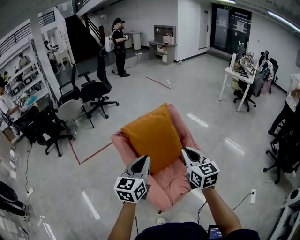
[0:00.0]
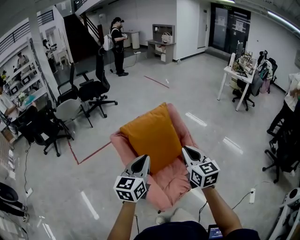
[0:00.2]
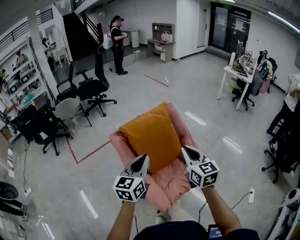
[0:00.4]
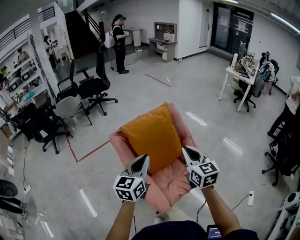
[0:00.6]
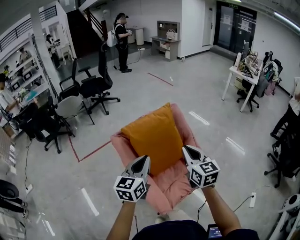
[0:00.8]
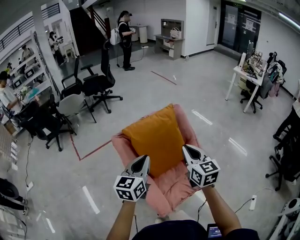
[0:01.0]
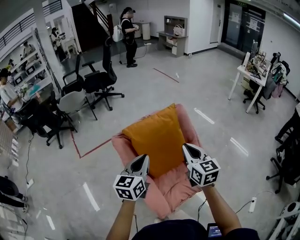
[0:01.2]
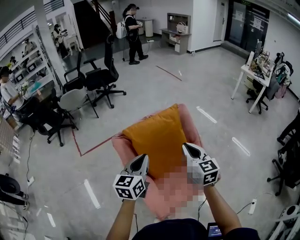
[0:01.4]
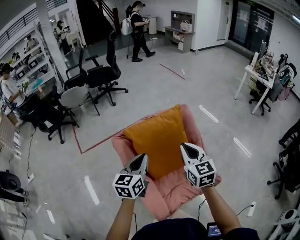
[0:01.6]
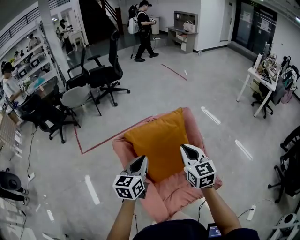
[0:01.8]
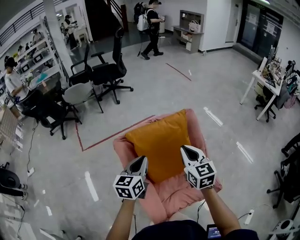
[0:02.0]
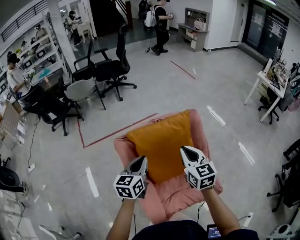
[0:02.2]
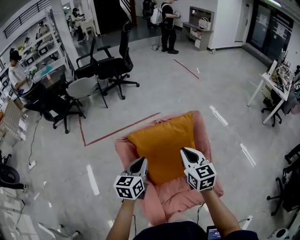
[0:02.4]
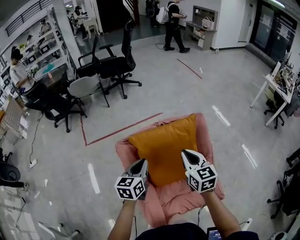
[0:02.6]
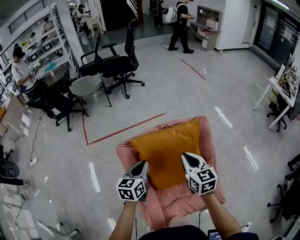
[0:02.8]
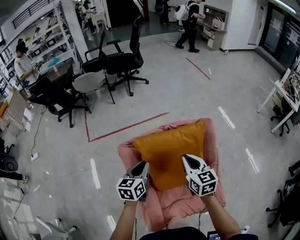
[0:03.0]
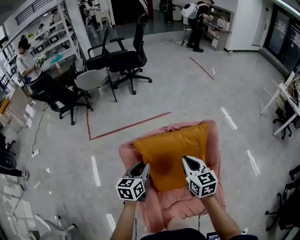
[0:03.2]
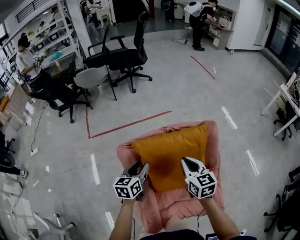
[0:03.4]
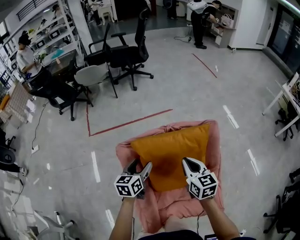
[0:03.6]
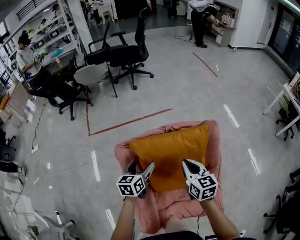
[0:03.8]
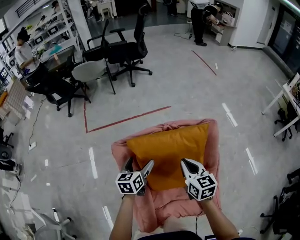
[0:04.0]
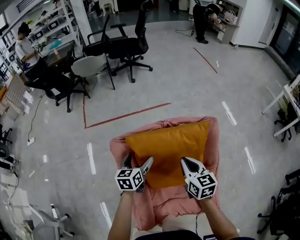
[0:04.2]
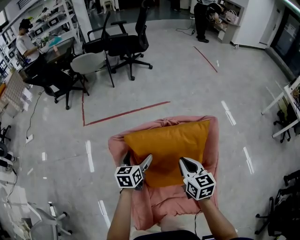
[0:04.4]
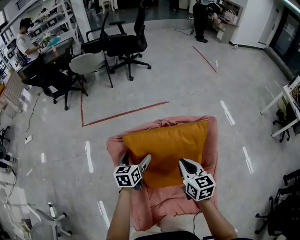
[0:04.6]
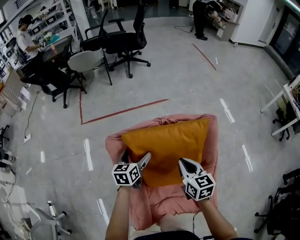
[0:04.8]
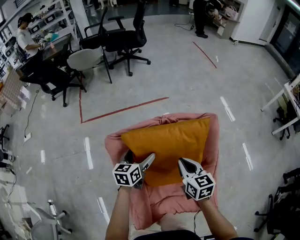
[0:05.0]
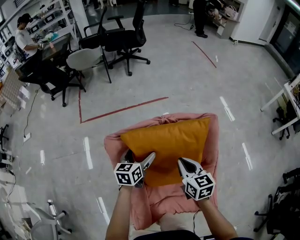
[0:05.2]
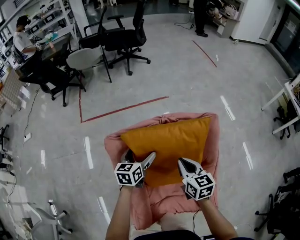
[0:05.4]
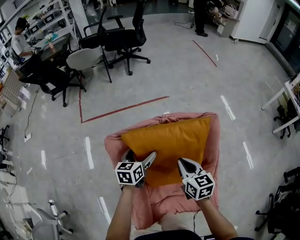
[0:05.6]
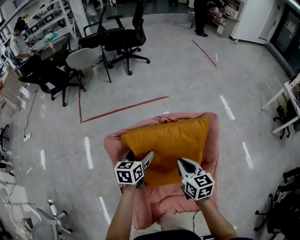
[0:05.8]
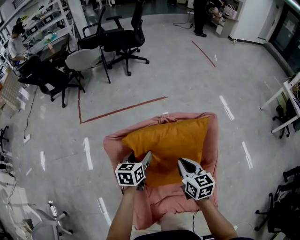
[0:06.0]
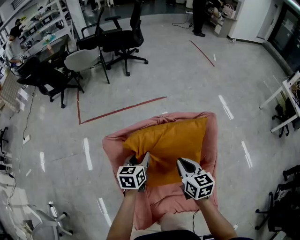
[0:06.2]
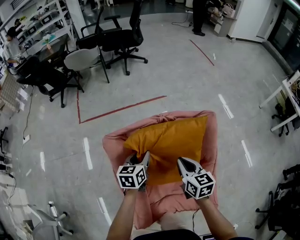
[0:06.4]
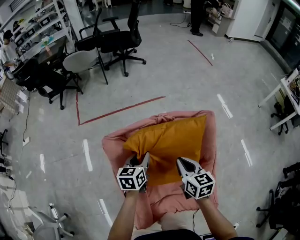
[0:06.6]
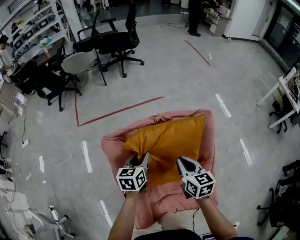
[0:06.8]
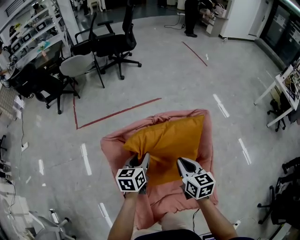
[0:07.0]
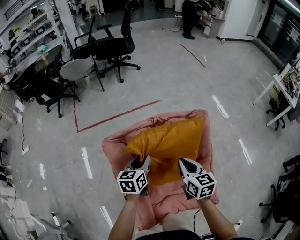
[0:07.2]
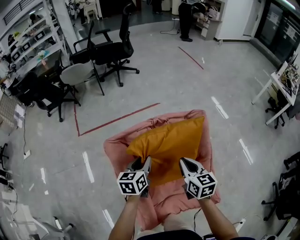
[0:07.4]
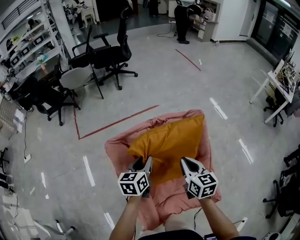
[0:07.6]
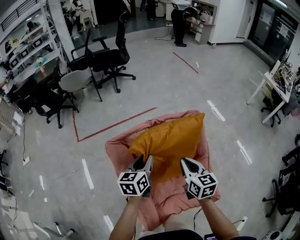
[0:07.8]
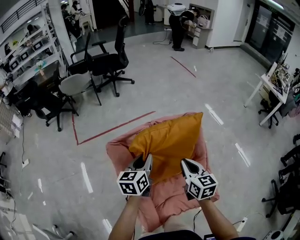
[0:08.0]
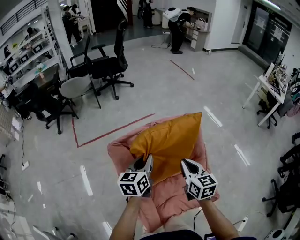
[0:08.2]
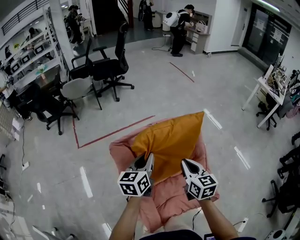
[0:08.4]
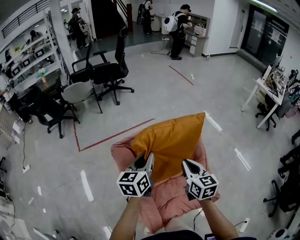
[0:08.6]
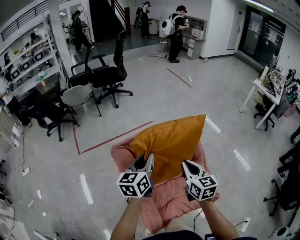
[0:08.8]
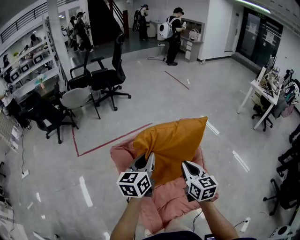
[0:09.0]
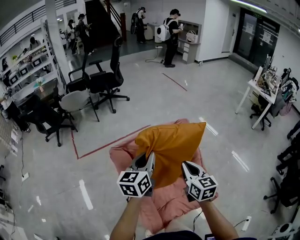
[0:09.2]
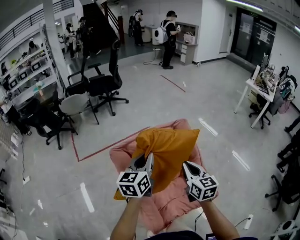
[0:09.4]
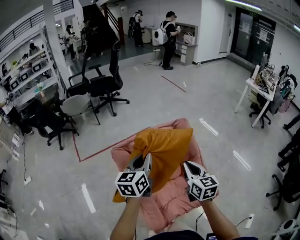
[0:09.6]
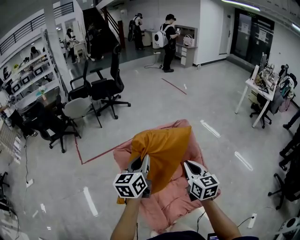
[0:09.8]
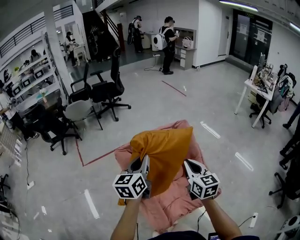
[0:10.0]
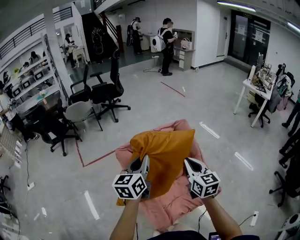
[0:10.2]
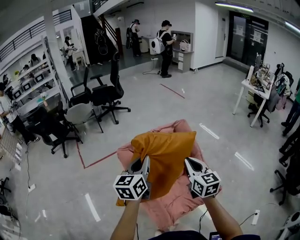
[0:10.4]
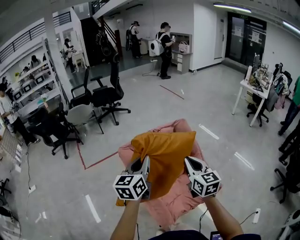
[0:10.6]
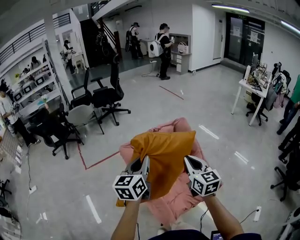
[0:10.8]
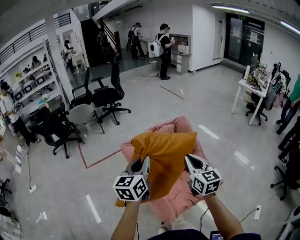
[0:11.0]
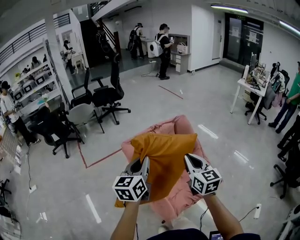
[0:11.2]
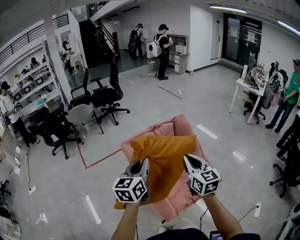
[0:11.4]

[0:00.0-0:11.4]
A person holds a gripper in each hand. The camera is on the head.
0:00.0 to 0:01.4: The right gripper travels forward by about 15 cm. The left gripper is displaced forward and downward by about 15 cm.
0:01.4 to 0:02.8: Both grippers move forward and downward, approximately 15 cm.
0:02.8 to 0:04.2: The right gripper moves downward, roughly 10 cm. The left gripper moves downward and forward, some 10 cm, and opens its fingers.
0:04.2 to 0:05.6: The grippers make only small movements.
0:05.6 to 0:07.2: The left gripper shifts by some 5 cm, and closes.
0:07.2 to 0:08.6: The left gripper moves upward, some 15 cm. The right gripper moves upward and backward, about 10 cm.
0:08.6 to 0:10.0: Both grippers move backward and upward, approximately 10 cm.
0:10.0 to 0:11.4: The two grippers go roughly 10 cm backward.

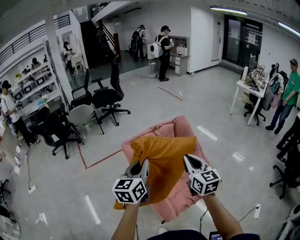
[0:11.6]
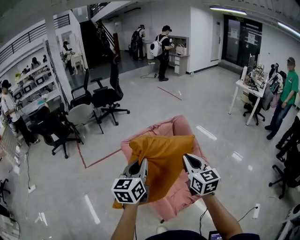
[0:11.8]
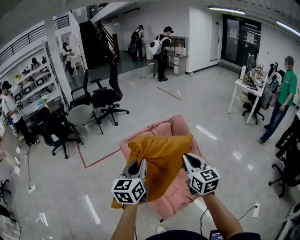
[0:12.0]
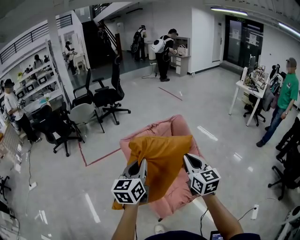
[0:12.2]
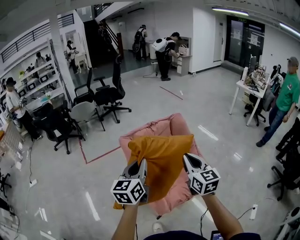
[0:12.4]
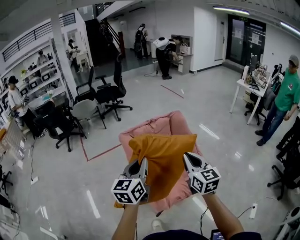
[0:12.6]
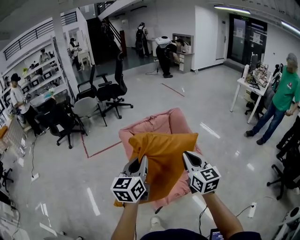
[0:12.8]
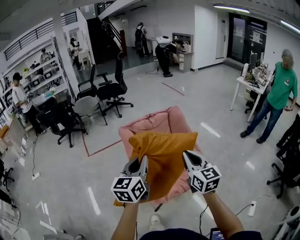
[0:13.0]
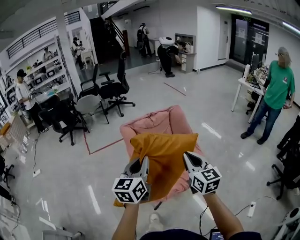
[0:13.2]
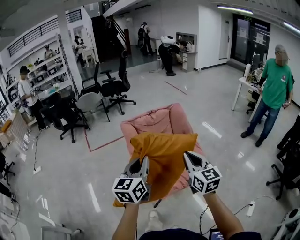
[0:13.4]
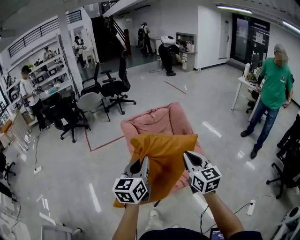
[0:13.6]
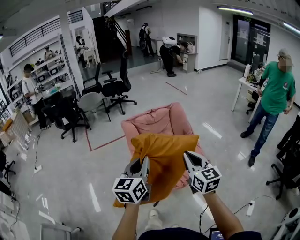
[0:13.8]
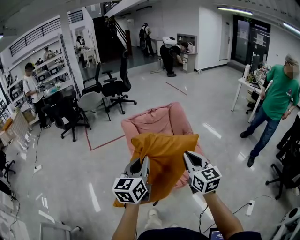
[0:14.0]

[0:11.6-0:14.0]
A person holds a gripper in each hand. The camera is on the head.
0:11.6 to 0:12.8: The two grippers go roughly 10 cm backward and to the right.
0:12.8 to 0:14.0: The two grippers go some 10 cm backward.

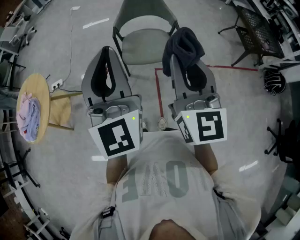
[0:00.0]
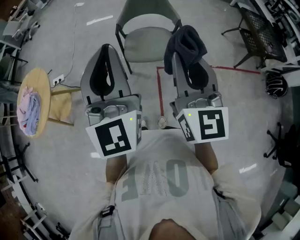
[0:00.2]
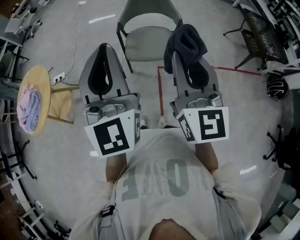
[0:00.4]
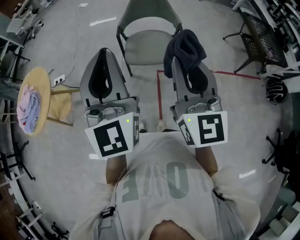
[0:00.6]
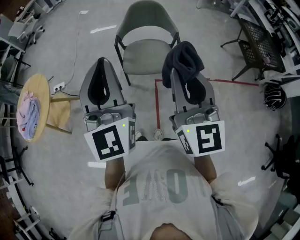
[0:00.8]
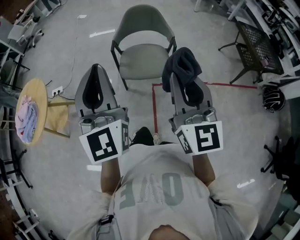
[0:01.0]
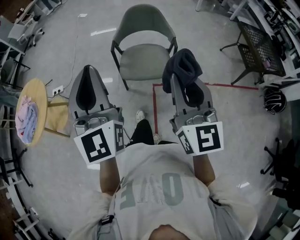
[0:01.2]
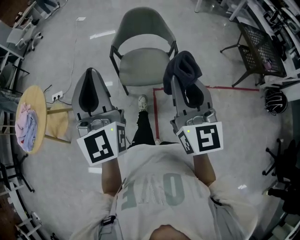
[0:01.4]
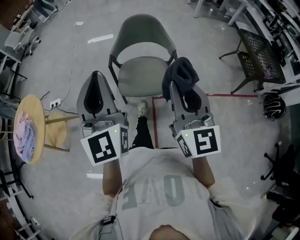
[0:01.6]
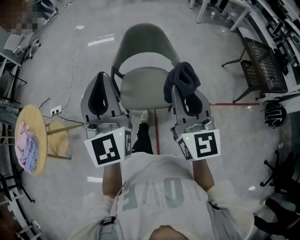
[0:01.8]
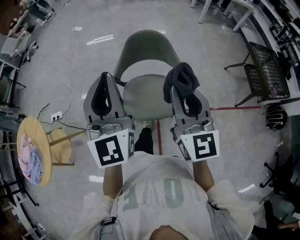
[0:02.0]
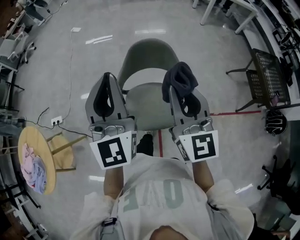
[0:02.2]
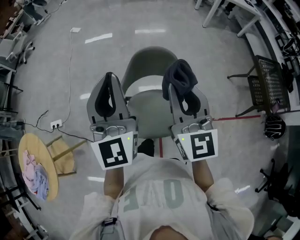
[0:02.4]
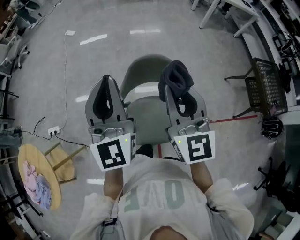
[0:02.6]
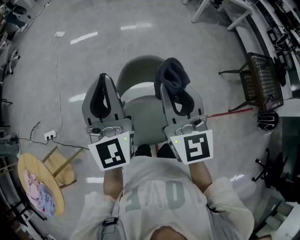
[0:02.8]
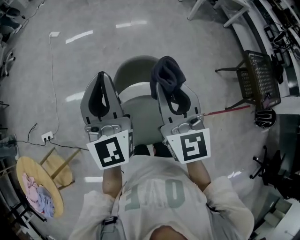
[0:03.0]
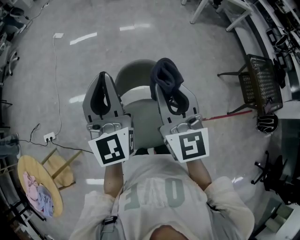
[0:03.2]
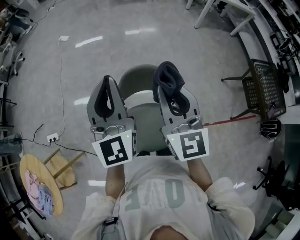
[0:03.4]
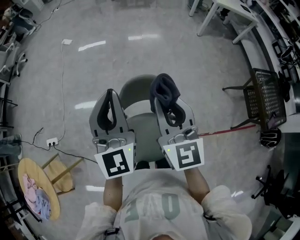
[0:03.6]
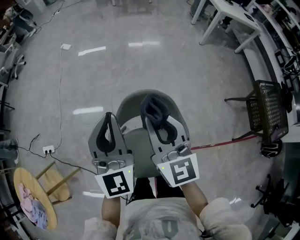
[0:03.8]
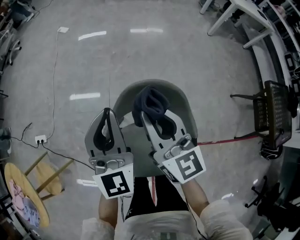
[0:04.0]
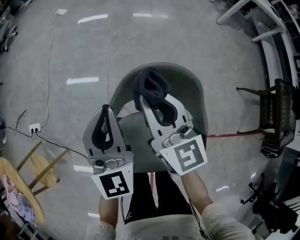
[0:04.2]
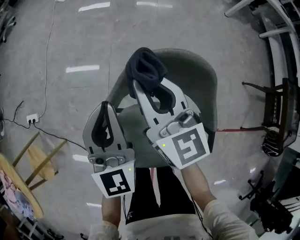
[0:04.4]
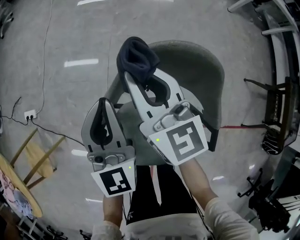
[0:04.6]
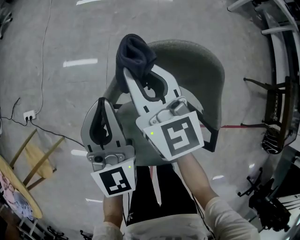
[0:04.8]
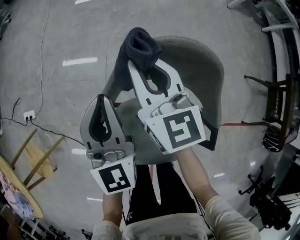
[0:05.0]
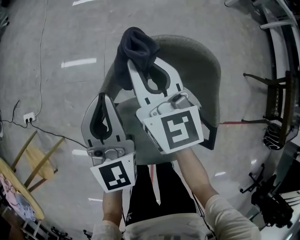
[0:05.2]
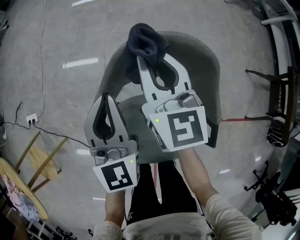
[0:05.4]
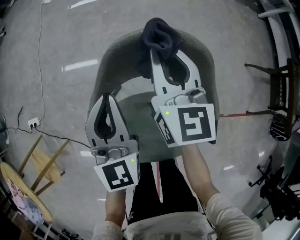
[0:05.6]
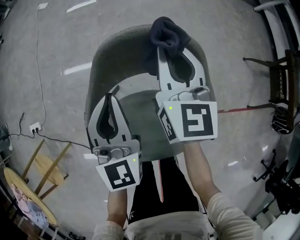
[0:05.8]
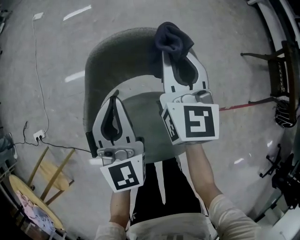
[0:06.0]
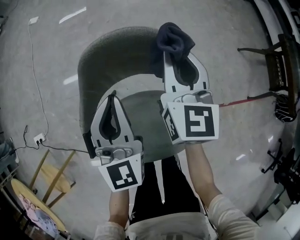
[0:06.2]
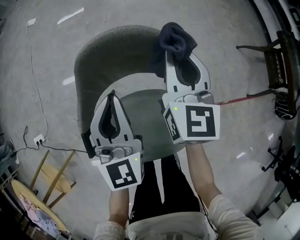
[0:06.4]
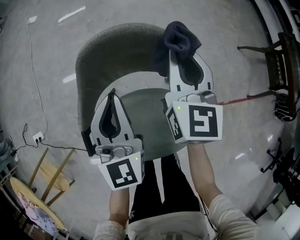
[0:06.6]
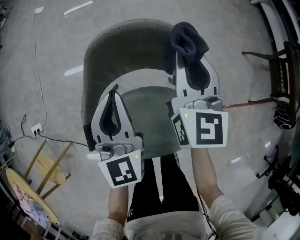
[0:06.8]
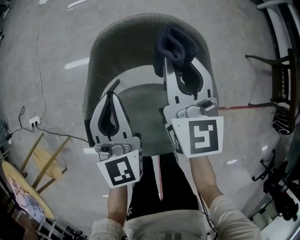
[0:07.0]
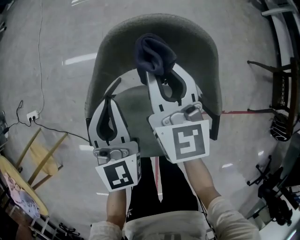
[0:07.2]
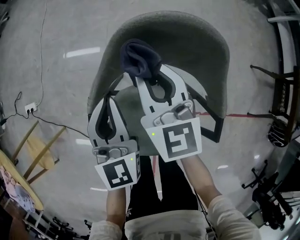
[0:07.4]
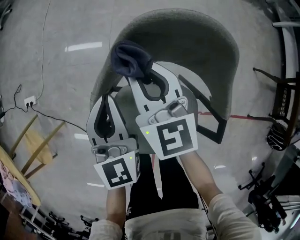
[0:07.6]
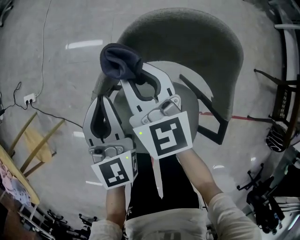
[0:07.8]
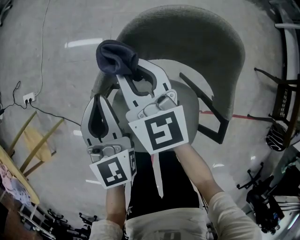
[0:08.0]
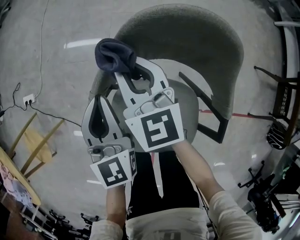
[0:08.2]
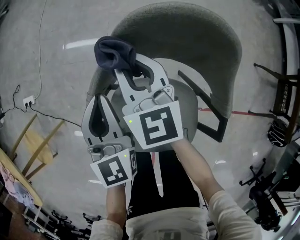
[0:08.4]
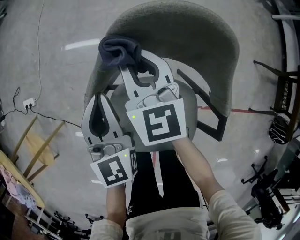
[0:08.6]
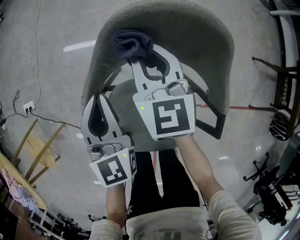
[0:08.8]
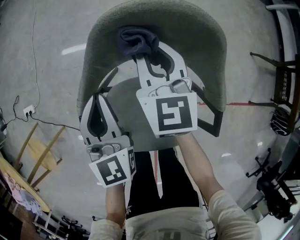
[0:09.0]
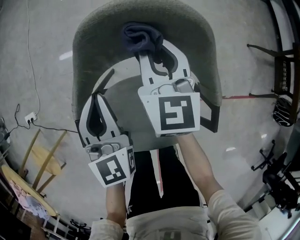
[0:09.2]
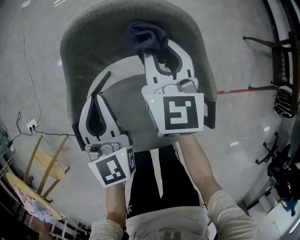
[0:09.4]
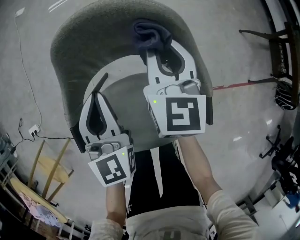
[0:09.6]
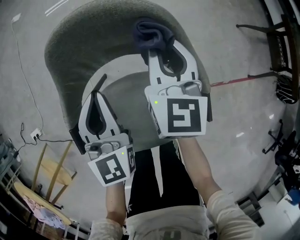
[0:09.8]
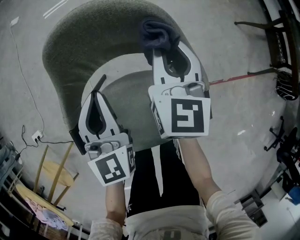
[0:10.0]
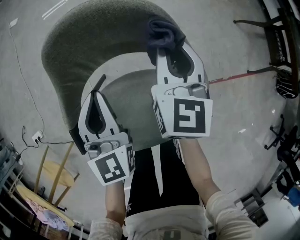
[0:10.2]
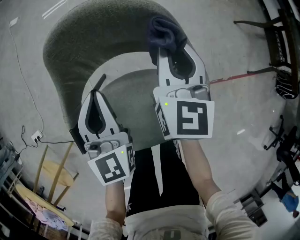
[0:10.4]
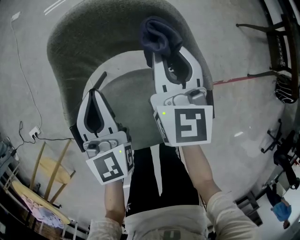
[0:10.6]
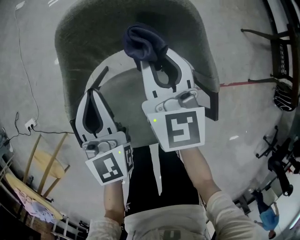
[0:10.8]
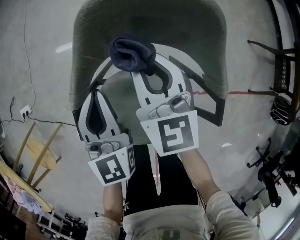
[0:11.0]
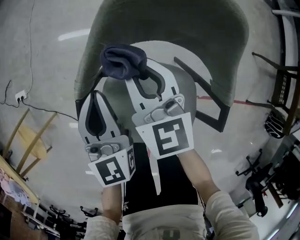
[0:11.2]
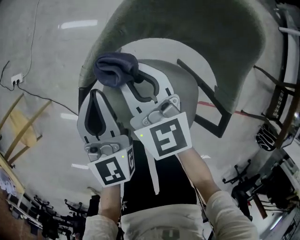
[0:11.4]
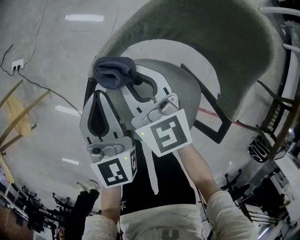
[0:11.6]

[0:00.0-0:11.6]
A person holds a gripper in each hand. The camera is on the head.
0:00.0 to 0:01.4: The right gripper shifts roughly 10 cm to the right and forward. Meanwhile the left gripper moves forward, some 5 cm.
0:01.4 to 0:02.8: Both grippers are carried forward, some 50 cm.
0:02.8 to 0:04.4: The left gripper heads downward, covering about 30 cm; the right gripper moves downward and forward, roughly 35 cm, and rotates approximately 30 degrees.
0:04.4 to 0:05.8: The right gripper is displaced to the right by roughly 15 cm, and changes its angle by some 30 degrees. Meanwhile the left gripper is displaced to the right and downward by some 10 cm.
0:05.8 to 0:07.2: The right gripper heads to the left, covering approximately 5 cm. The left gripper travels to the right and back again, roughly 5 cm each way.
0:07.2 to 0:08.8: The right gripper goes about 5 cm downward, and travels to the left and back again, roughly 10 cm each way.
0:08.8 to 0:10.2: The right gripper goes some 20 cm to the right, and swivels some 30 degrees. The left gripper shifts about 10 cm to the right.
0:10.2 to 0:11.6: The right gripper shifts by about 35 cm, and rotates some 60 degrees. The left gripper ends up approximately 20 cm from where it was, and changes its angle by about 30 degrees.
